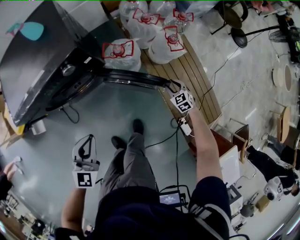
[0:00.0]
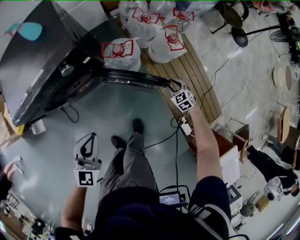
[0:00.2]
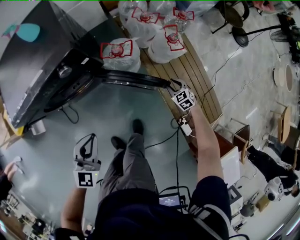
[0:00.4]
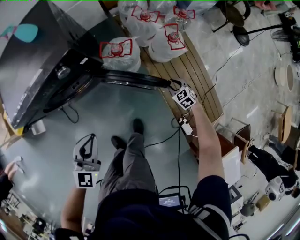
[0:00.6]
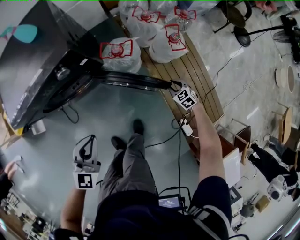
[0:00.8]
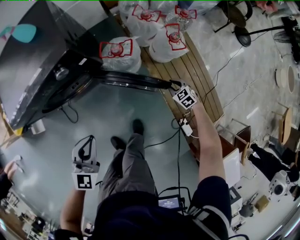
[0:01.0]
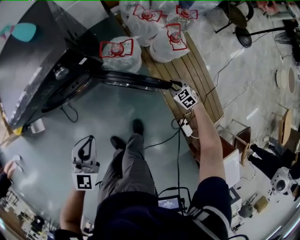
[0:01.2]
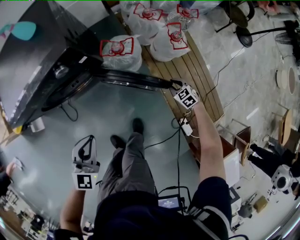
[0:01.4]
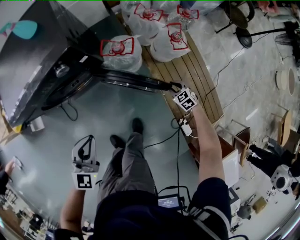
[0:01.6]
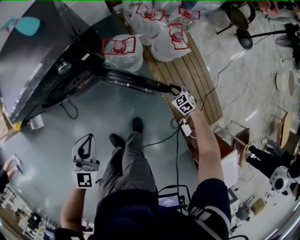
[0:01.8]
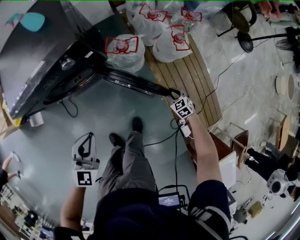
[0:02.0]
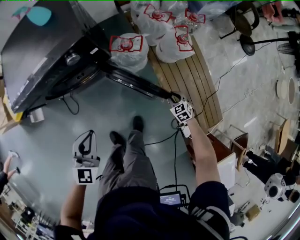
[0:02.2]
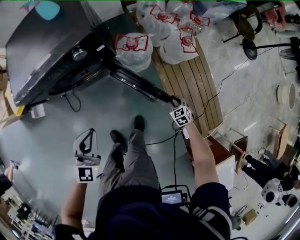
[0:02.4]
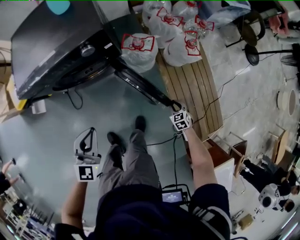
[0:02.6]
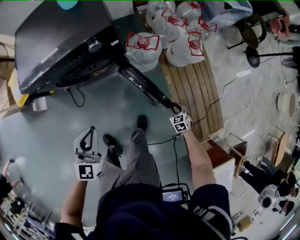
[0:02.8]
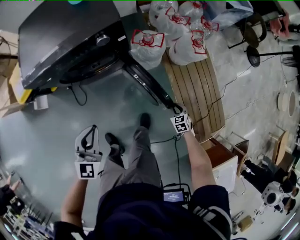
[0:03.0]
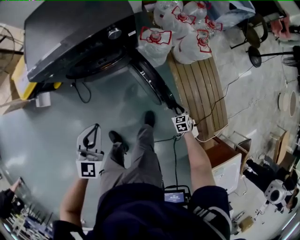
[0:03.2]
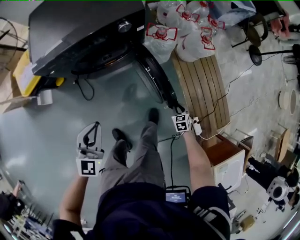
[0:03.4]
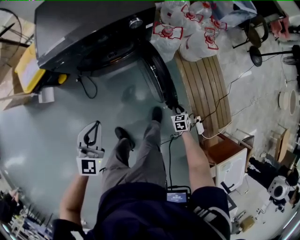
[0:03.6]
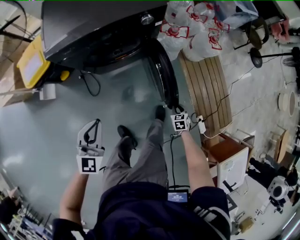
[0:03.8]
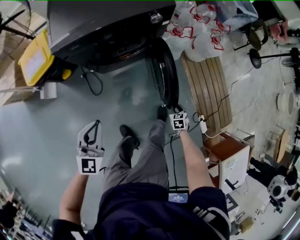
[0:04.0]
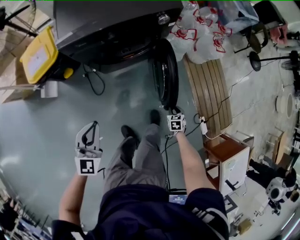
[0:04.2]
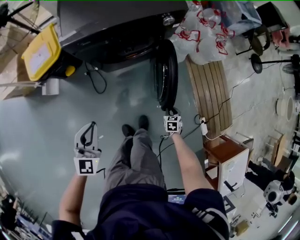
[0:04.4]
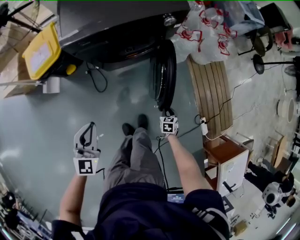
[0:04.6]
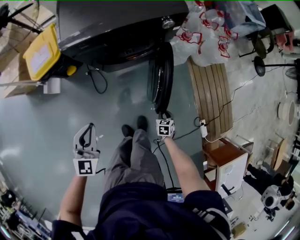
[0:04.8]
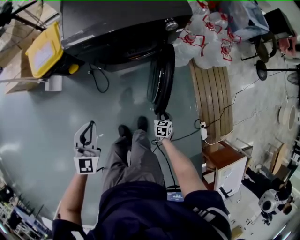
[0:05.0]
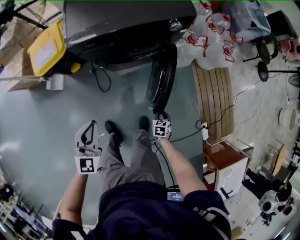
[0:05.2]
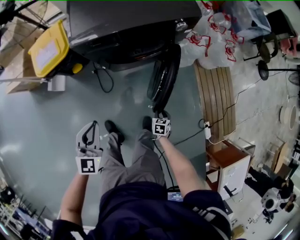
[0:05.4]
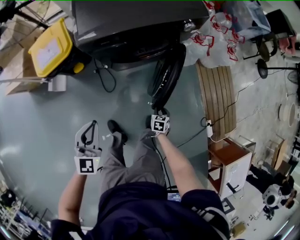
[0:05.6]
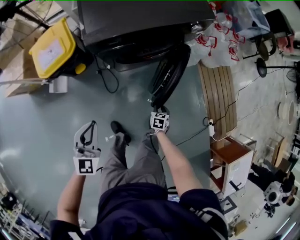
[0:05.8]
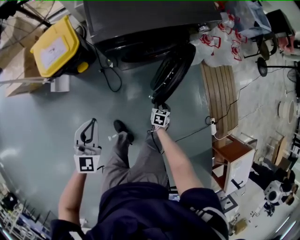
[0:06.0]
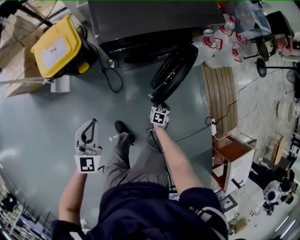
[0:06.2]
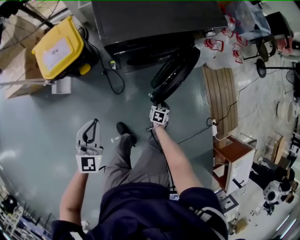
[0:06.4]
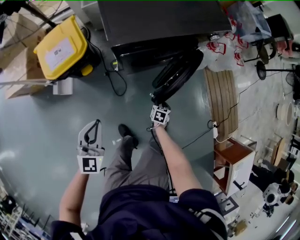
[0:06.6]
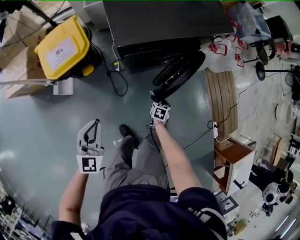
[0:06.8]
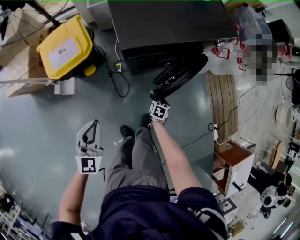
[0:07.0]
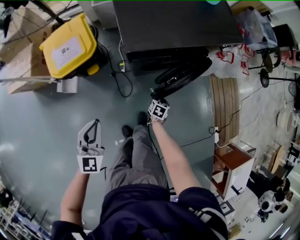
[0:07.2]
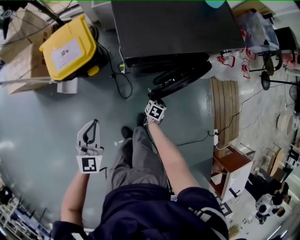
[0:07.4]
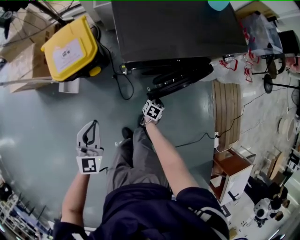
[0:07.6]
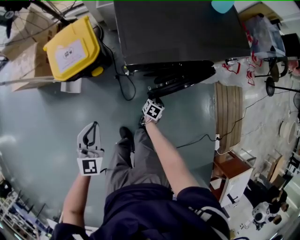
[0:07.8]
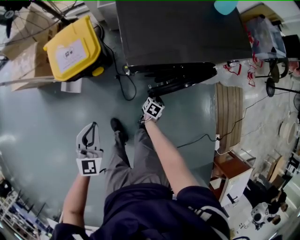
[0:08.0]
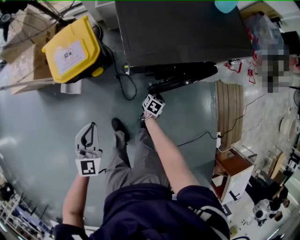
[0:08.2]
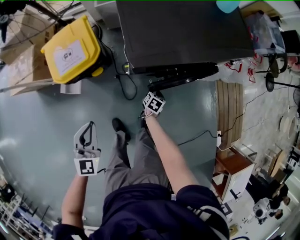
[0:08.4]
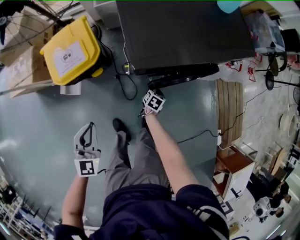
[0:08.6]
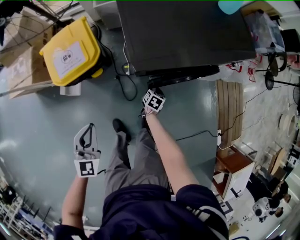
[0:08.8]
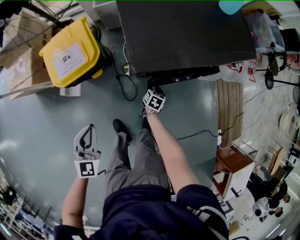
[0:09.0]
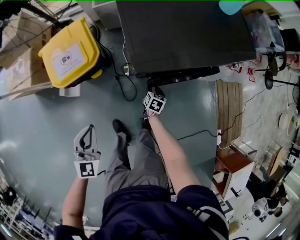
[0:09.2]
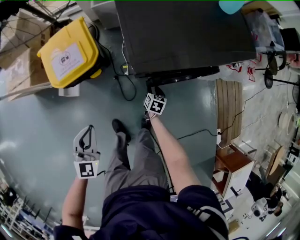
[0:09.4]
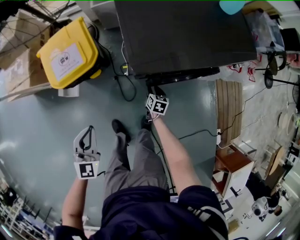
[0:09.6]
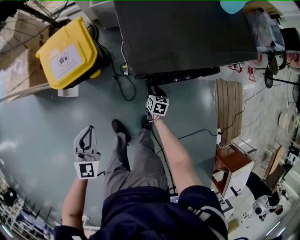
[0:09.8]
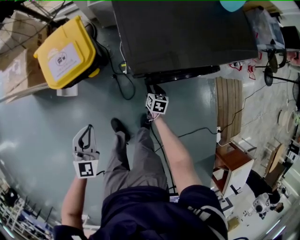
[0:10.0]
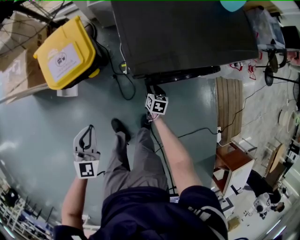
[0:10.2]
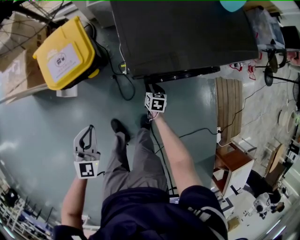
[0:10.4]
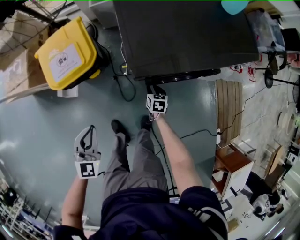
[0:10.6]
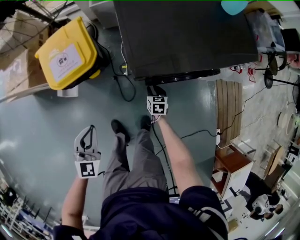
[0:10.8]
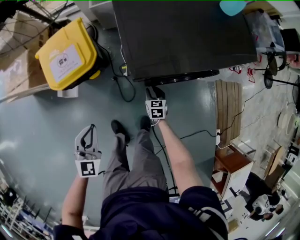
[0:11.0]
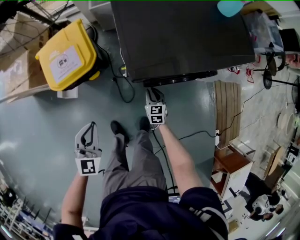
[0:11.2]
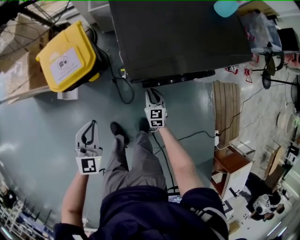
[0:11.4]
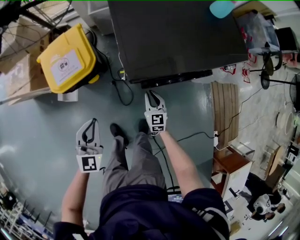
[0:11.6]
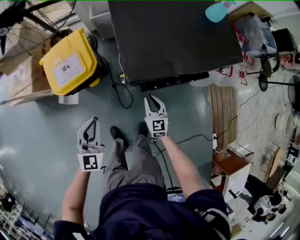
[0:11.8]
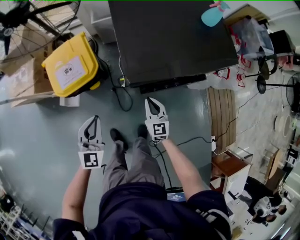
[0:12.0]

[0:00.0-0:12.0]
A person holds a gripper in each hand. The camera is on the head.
0:00.0 to 0:01.6: The right gripper moves downward, approximately 5 cm.
0:01.6 to 0:03.0: The left gripper travels to the left and backward by roughly 15 cm, while the right gripper is displaced backward and to the left by about 20 cm.
0:03.0 to 0:04.4: Both grippers move to the left and backward, roughly 30 cm.
0:04.4 to 0:06.0: The grippers both shift to the left by about 20 cm.
0:06.0 to 0:07.6: The left gripper is displaced to the left and forward by some 15 cm; the right gripper shifts about 20 cm to the left and forward.
0:07.6 to 0:09.0: The right gripper is displaced forward and to the left by roughly 10 cm. Meanwhile the left gripper goes about 5 cm to the left.
0:09.0 to 0:10.4: The grippers stay close to where they were, moving slightly.
0:10.4 to 0:12.0: The right gripper heads upward, covering approximately 25 cm, tips its fingers upward by some 30 degrees, and closes. Meanwhile the left gripper moves upward, approximately 10 cm.

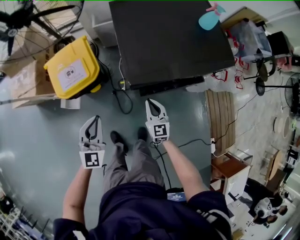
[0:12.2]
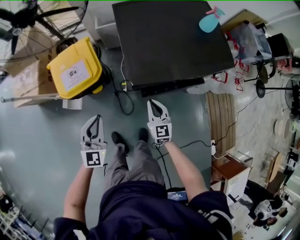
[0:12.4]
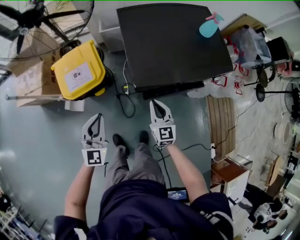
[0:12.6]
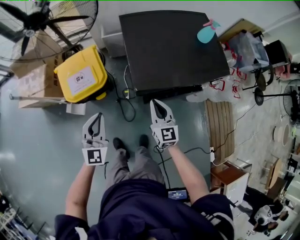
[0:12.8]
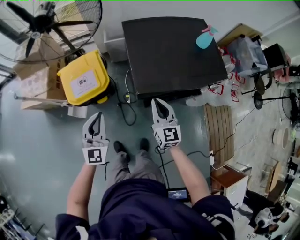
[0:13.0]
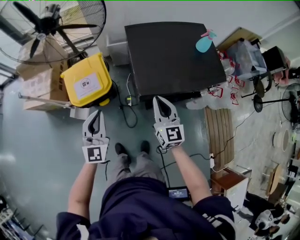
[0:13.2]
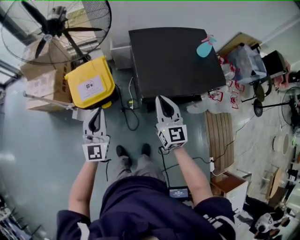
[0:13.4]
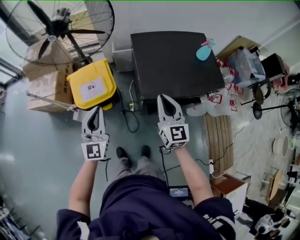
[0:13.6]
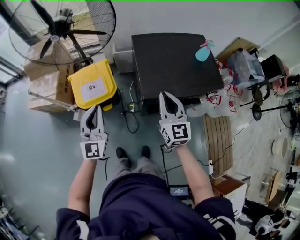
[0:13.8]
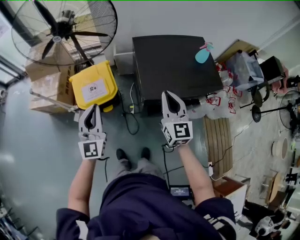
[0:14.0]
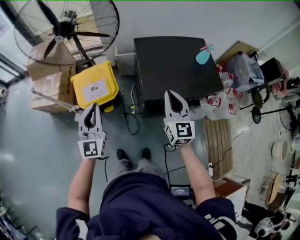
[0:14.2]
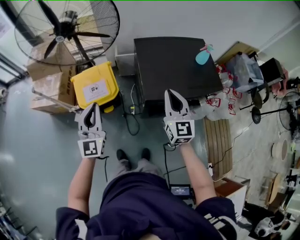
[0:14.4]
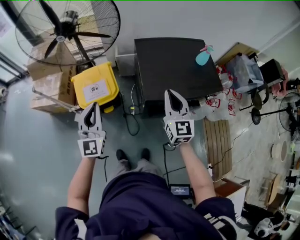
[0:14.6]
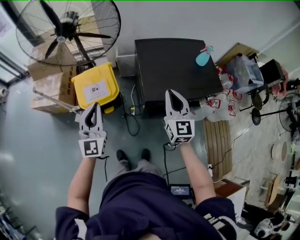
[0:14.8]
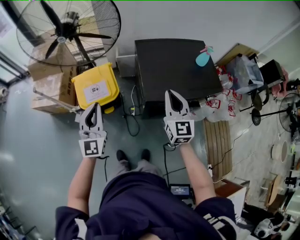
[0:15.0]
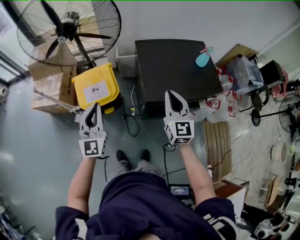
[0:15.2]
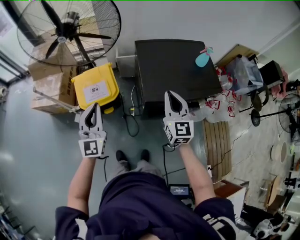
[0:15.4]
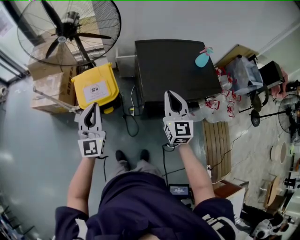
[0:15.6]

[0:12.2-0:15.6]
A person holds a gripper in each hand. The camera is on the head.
0:12.2 to 0:13.8: The right gripper shifts roughly 35 cm upward, while the left gripper goes about 20 cm upward, and turns by roughly 20 degrees.
0:13.8 to 0:15.6: There are only small adjustments of the grippers.

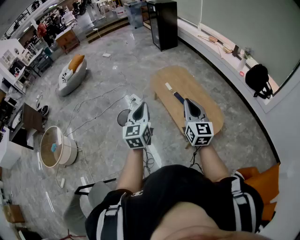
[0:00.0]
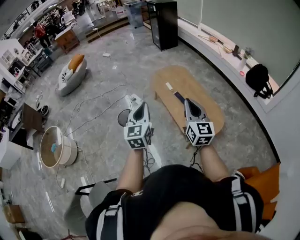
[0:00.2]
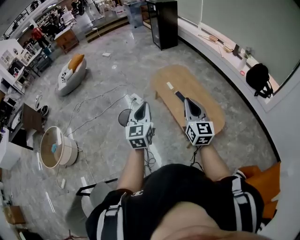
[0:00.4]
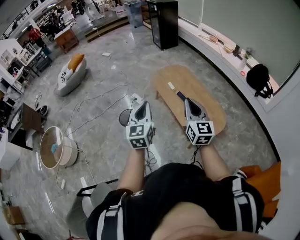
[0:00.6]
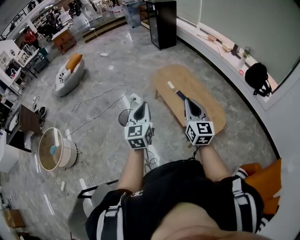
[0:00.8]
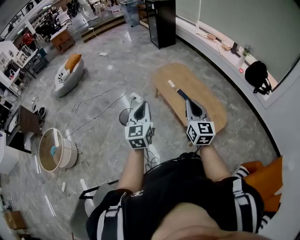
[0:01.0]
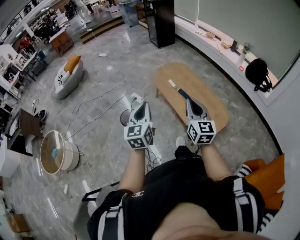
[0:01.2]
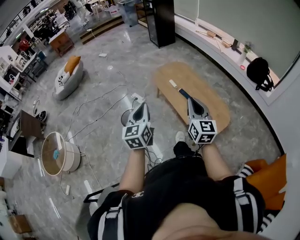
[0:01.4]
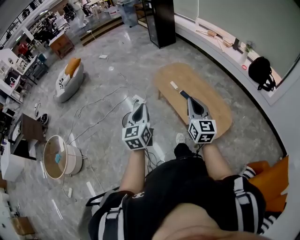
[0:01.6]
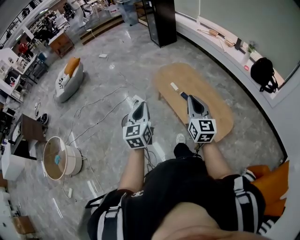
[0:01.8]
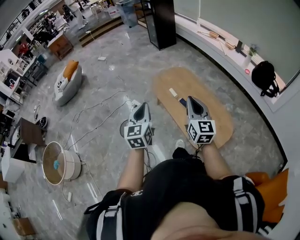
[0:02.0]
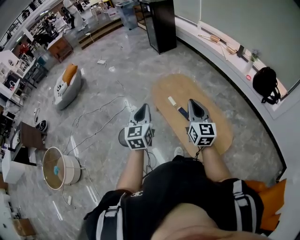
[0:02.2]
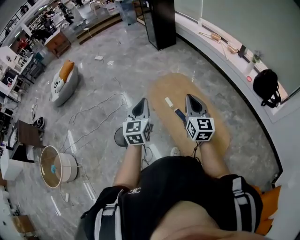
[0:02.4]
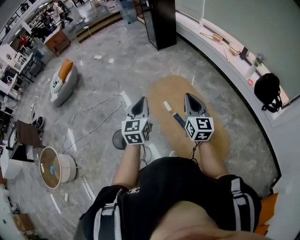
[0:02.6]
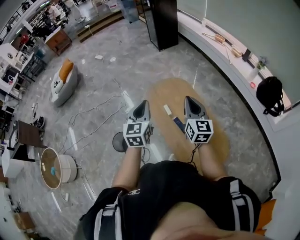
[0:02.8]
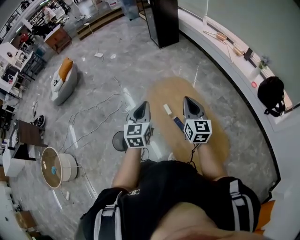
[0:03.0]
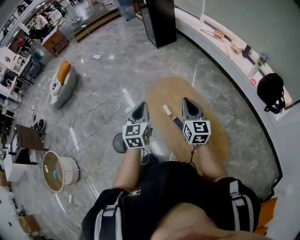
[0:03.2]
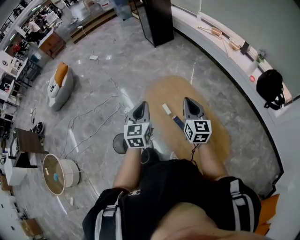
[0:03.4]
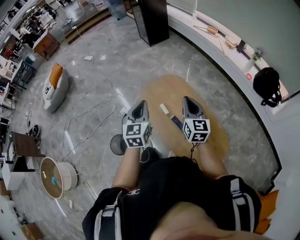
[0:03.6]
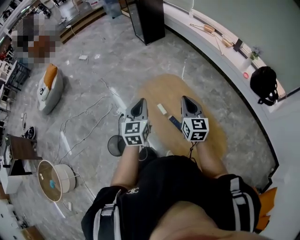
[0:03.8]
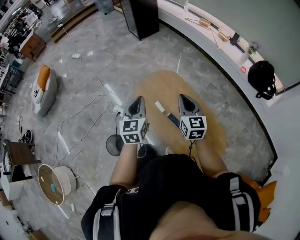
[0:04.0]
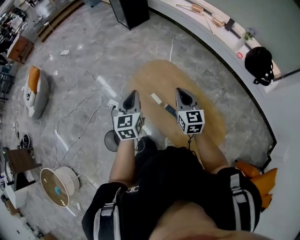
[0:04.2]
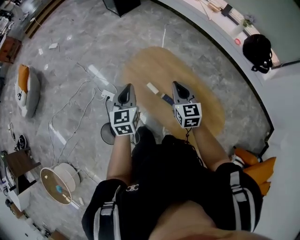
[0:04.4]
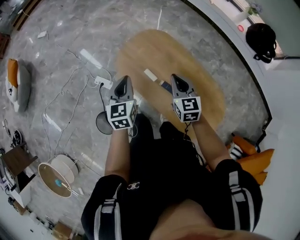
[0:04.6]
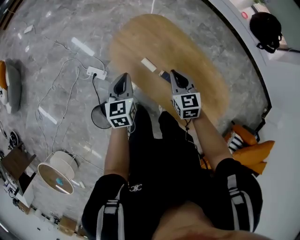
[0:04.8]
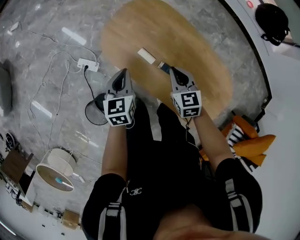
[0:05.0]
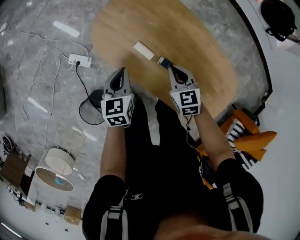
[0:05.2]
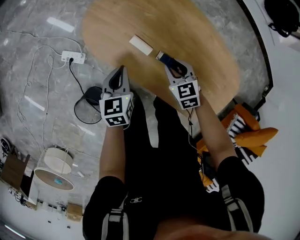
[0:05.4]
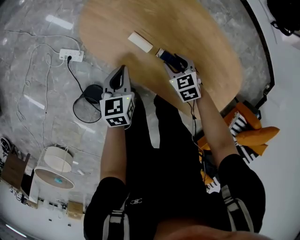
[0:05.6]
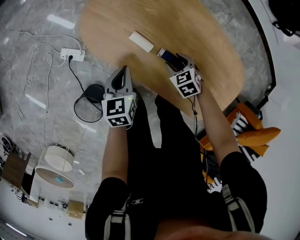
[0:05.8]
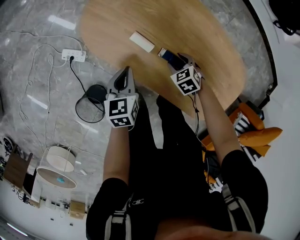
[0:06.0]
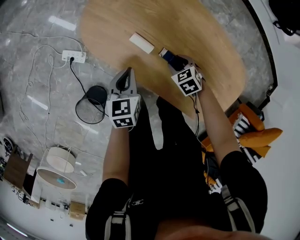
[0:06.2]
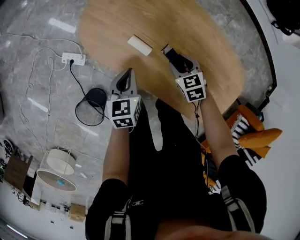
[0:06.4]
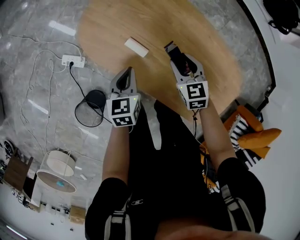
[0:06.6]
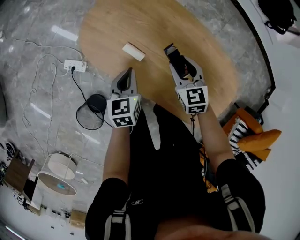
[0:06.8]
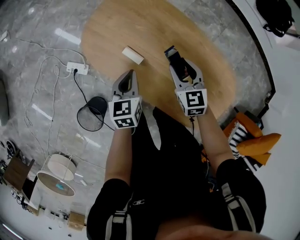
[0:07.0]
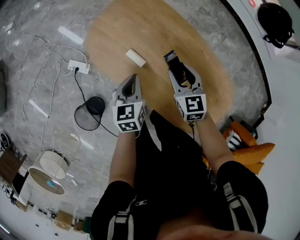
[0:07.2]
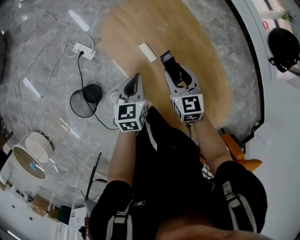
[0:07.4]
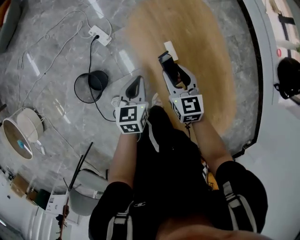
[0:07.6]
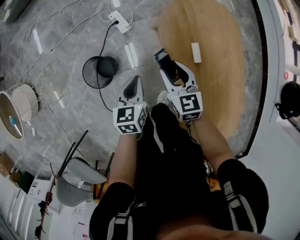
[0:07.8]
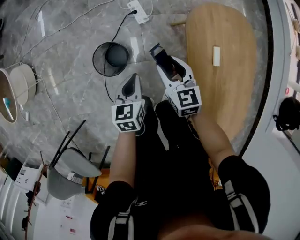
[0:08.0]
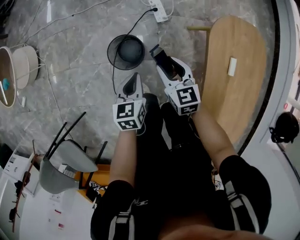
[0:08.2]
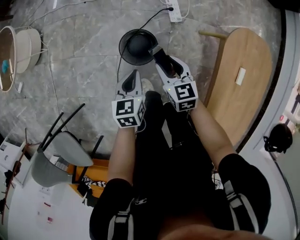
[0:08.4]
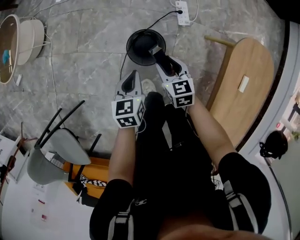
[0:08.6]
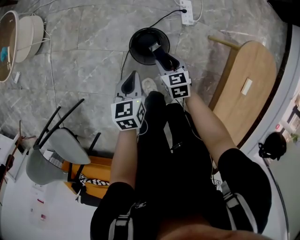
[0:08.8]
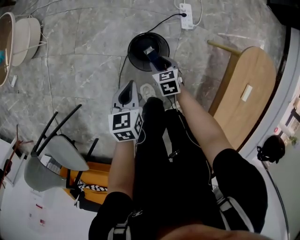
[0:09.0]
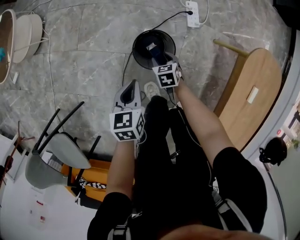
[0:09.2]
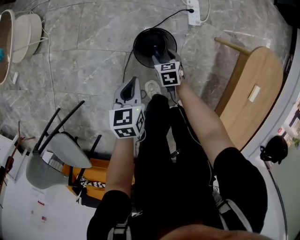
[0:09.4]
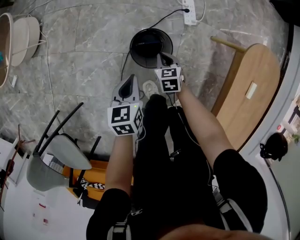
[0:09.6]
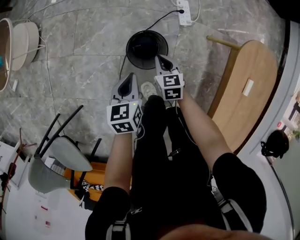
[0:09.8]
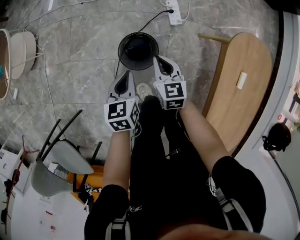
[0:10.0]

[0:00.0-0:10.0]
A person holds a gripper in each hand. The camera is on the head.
0:00.0 to 0:01.4: Both grippers move to the left, about 10 cm.
0:01.4 to 0:02.8: The two grippers travel together, forward, roughly 40 cm.
0:02.8 to 0:04.2: Both grippers move forward and downward, about 15 cm.
0:04.2 to 0:05.8: The two grippers go roughly 50 cm downward. The left gripper changes its angle by about 30 degrees. The right gripper tips its fingers downward by about 50 degrees, and opens its fingers.
0:05.8 to 0:07.2: The left gripper is displaced upward and to the right by about 10 cm, while the right gripper travels upward by approximately 20 cm, and tips its fingers upward by roughly 30 degrees.
0:07.2 to 0:08.6: The two grippers travel together, about 60 cm. The right gripper swivels roughly 60 degrees. Meanwhile the left gripper turns by about 60 degrees.
0:08.6 to 0:10.0: The right gripper moves about 20 cm downward and comes back, and closes up.
